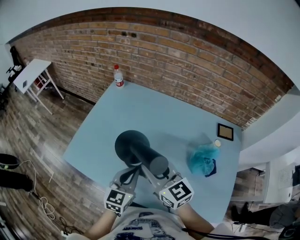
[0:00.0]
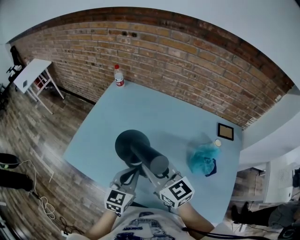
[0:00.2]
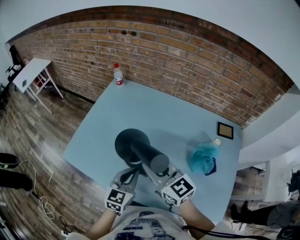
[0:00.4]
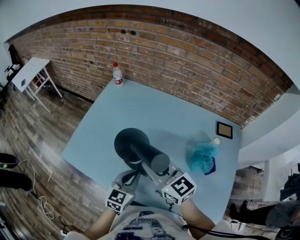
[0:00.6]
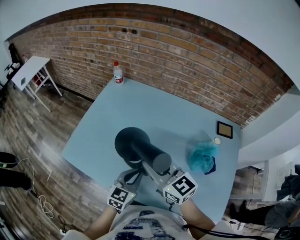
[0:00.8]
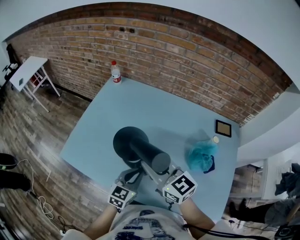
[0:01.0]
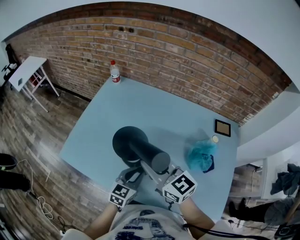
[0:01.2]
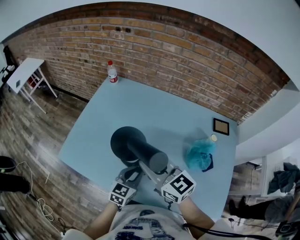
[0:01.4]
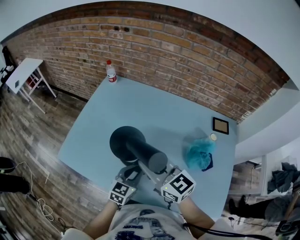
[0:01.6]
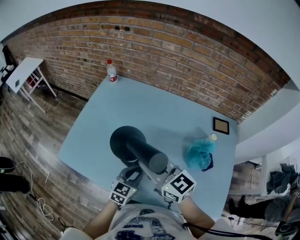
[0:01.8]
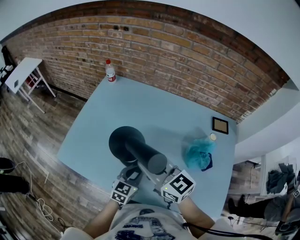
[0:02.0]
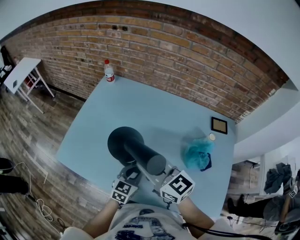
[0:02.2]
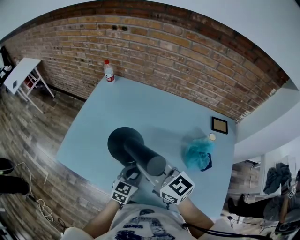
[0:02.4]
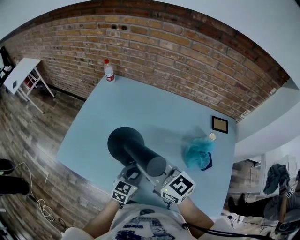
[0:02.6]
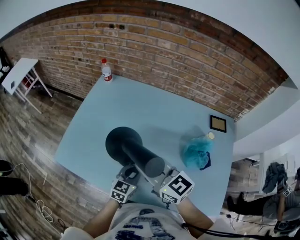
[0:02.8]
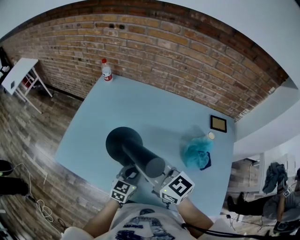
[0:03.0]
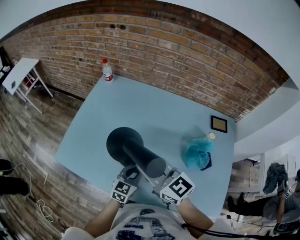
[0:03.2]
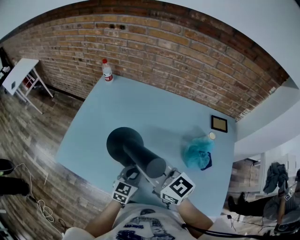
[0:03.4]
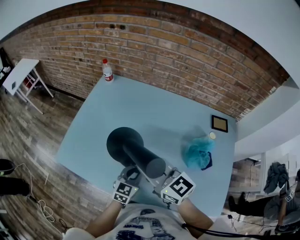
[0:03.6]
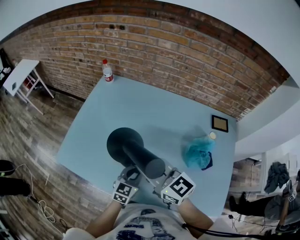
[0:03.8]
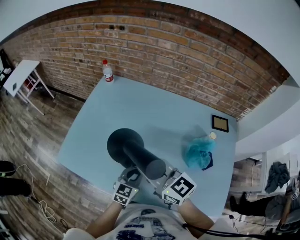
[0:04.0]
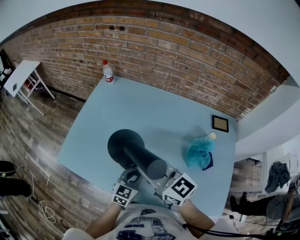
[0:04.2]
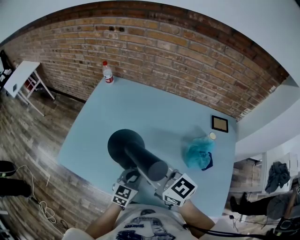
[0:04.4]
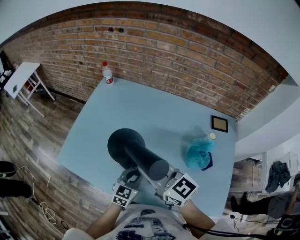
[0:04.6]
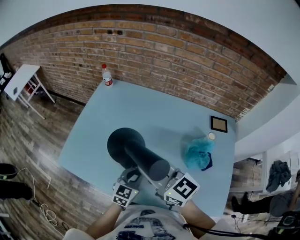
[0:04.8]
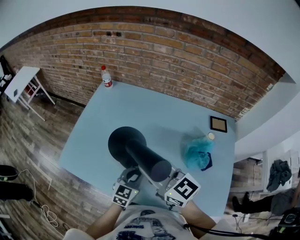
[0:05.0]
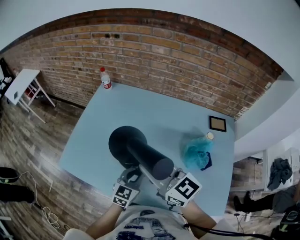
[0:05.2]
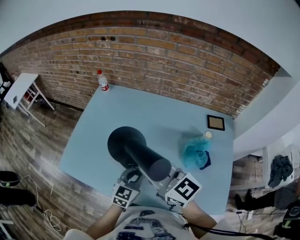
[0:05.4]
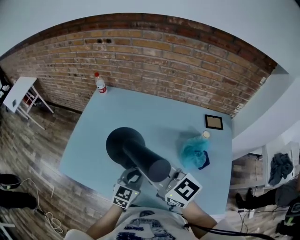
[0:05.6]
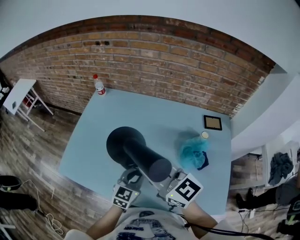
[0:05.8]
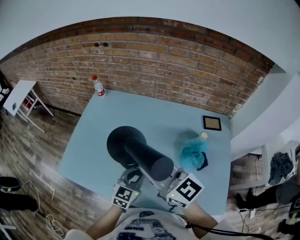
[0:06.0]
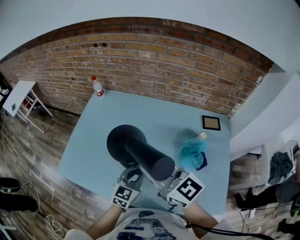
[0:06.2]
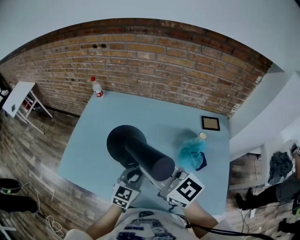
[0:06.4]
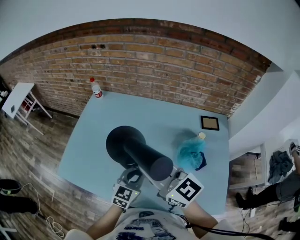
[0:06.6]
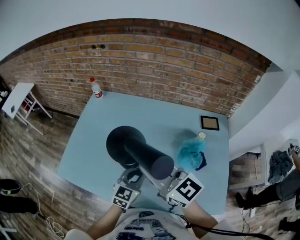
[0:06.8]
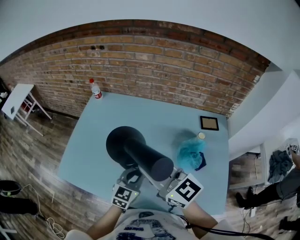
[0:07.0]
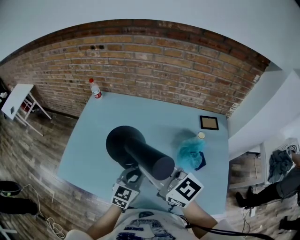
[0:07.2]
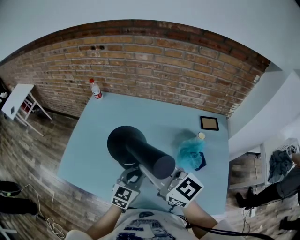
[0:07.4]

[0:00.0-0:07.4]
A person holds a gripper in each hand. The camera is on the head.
0:00.0 to 0:01.4: The left gripper heads downward, covering approximately 10 cm.
0:01.4 to 0:04.4: The grippers stay close to where they were, moving slightly.
0:04.4 to 0:06.0: The two grippers go approximately 10 cm upward and to the right.
0:06.0 to 0:07.4: Both grippers stay put.

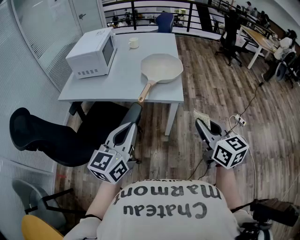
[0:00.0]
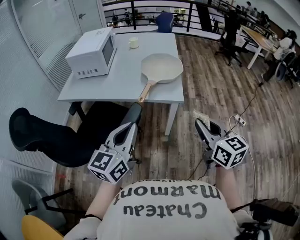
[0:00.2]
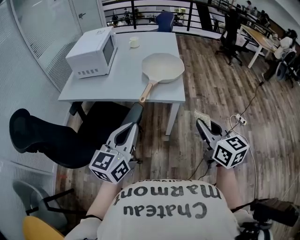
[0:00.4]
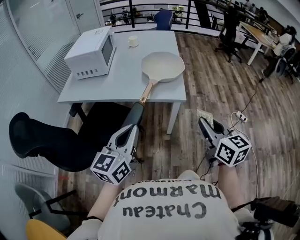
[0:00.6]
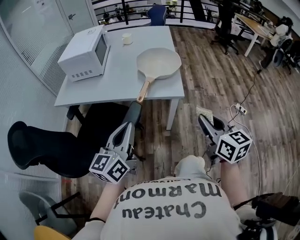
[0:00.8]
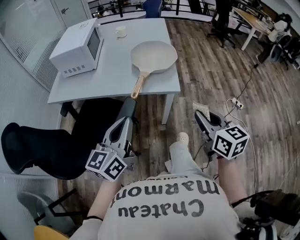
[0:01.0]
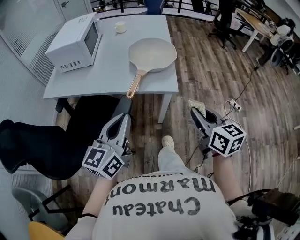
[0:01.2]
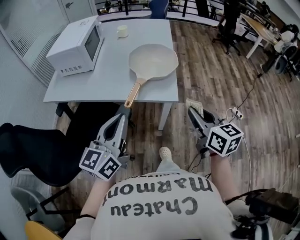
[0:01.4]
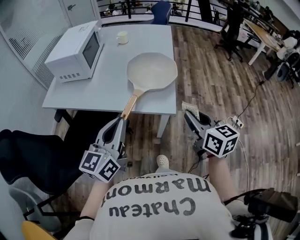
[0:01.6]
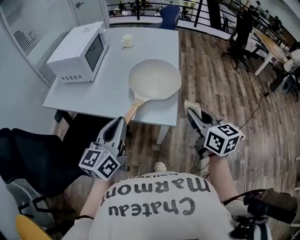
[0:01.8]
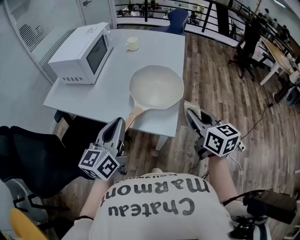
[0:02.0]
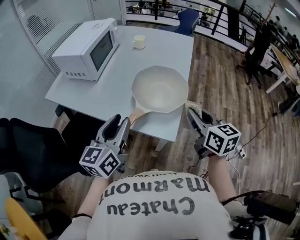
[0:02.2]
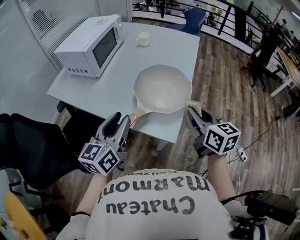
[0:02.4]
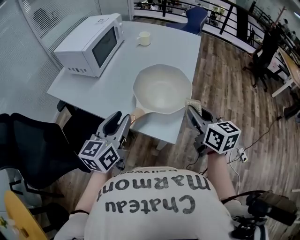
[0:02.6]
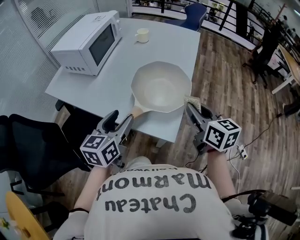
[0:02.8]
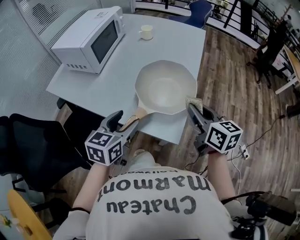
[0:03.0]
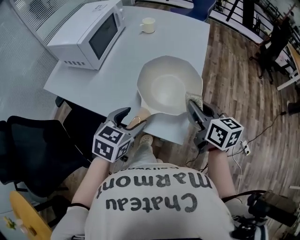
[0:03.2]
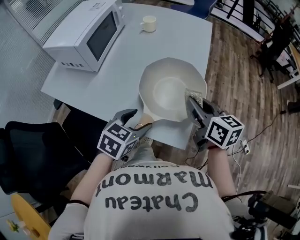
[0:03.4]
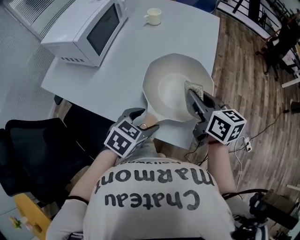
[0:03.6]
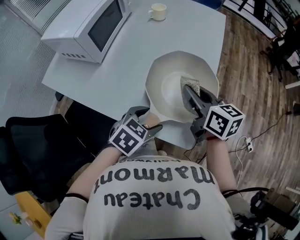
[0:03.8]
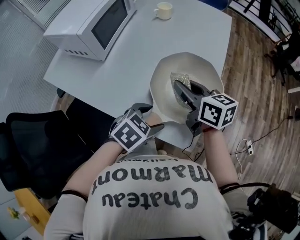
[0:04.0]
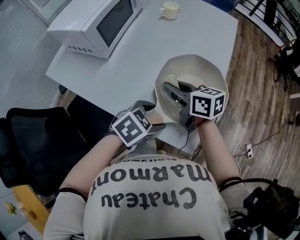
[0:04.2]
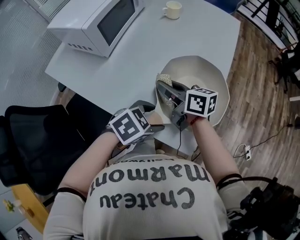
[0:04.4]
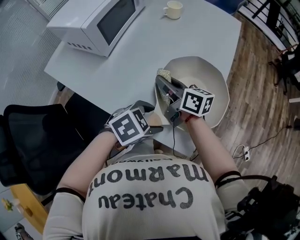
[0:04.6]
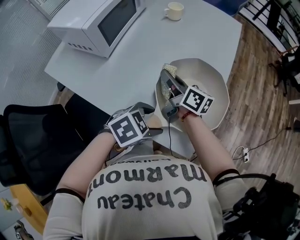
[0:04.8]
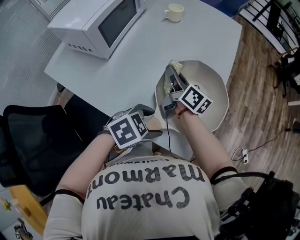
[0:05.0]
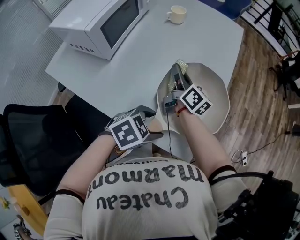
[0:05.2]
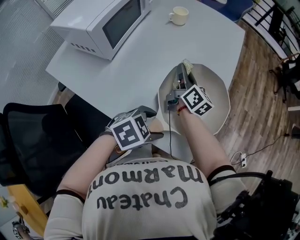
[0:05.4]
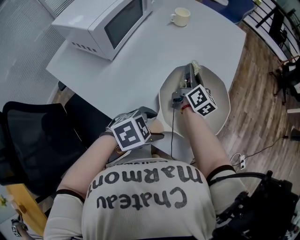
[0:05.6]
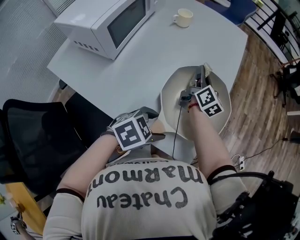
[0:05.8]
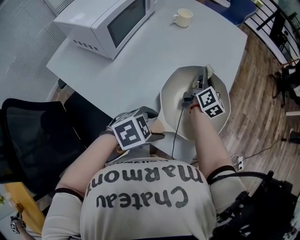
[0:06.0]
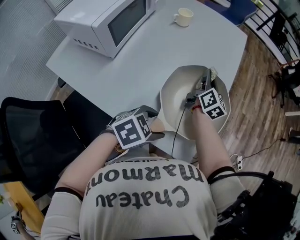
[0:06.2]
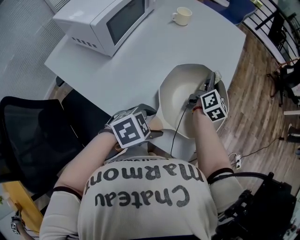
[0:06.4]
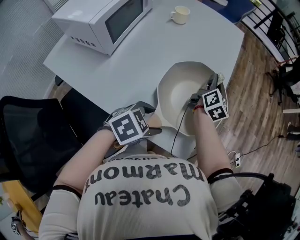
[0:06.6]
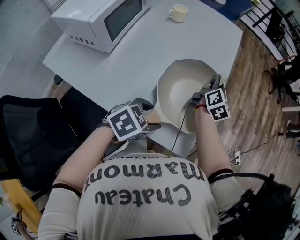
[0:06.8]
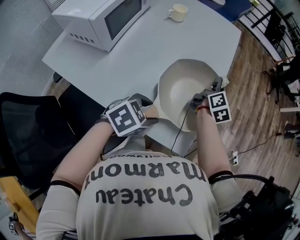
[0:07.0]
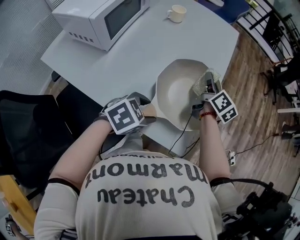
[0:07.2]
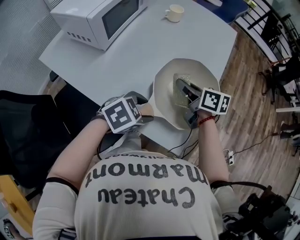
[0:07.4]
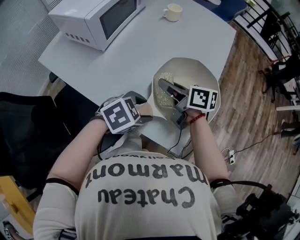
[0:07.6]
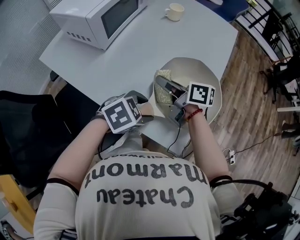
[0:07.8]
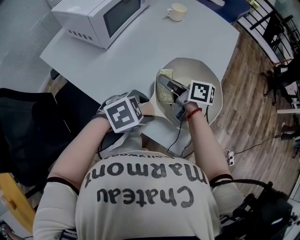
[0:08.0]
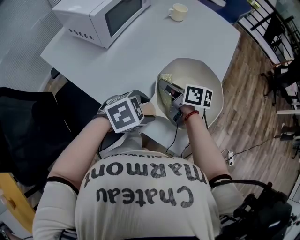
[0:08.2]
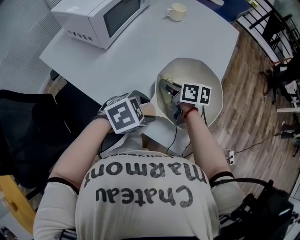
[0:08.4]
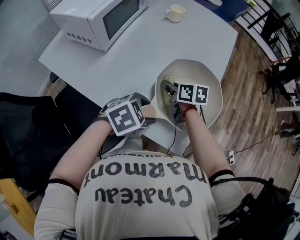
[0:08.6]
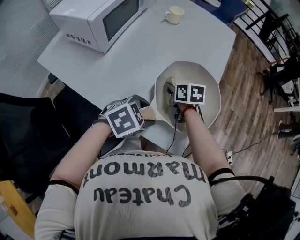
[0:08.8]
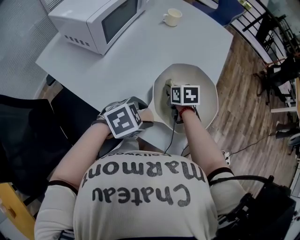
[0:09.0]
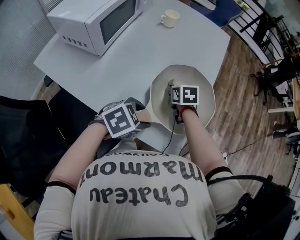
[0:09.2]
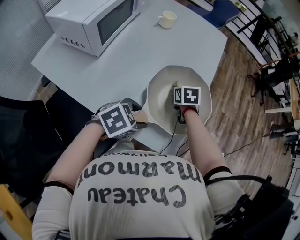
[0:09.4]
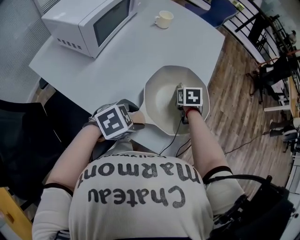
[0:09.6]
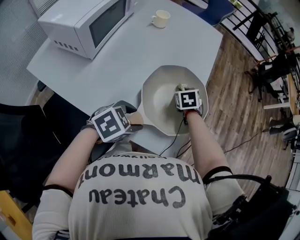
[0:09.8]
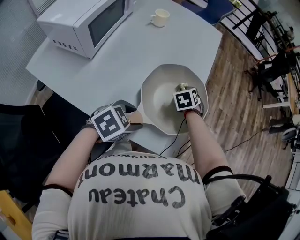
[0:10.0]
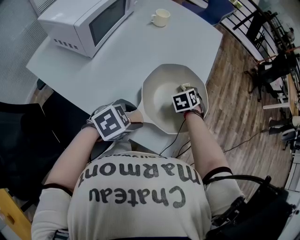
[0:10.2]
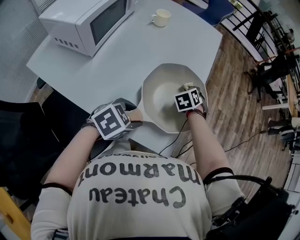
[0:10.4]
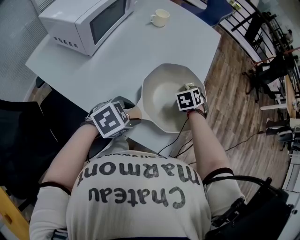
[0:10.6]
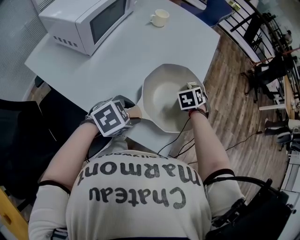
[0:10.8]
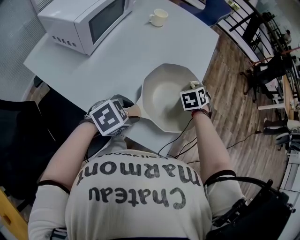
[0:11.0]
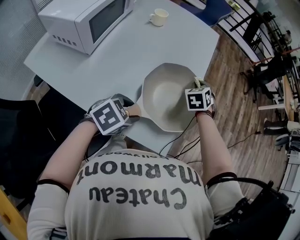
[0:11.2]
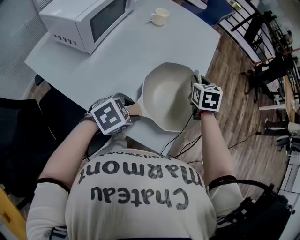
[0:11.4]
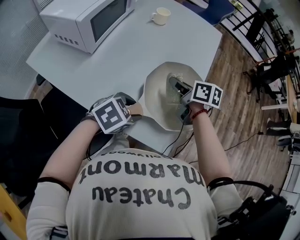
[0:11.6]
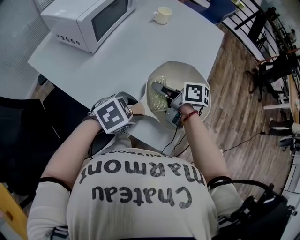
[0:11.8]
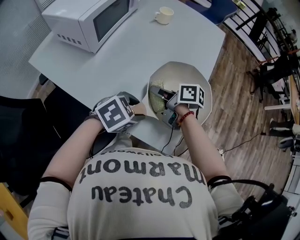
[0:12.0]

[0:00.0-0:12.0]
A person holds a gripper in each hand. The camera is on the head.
0:00.0 to 0:01.6: The two grippers go about 15 cm forward.
0:01.6 to 0:03.0: The right gripper travels forward by approximately 20 cm, while the left gripper heads forward and downward, covering roughly 20 cm, changes its angle by some 30 degrees, and opens up.
0:03.0 to 0:04.4: The left gripper travels downward by approximately 10 cm, and swivels about 50 degrees. The right gripper shifts by about 30 cm, and turns by roughly 30 degrees.
0:04.4 to 0:06.0: The right gripper moves approximately 20 cm, and changes its angle by some 50 degrees.
0:06.0 to 0:07.6: The right gripper ends up roughly 20 cm from where it was, and rotates approximately 60 degrees.
0:07.6 to 0:09.0: The right gripper goes some 10 cm downward, and angles its fingers downward, by approximately 40 degrees.
0:09.0 to 0:10.4: The right gripper moves roughly 15 cm, and changes its angle by about 40 degrees.
0:10.4 to 0:12.0: The right gripper moves roughly 20 cm, and changes its angle by about 90 degrees.

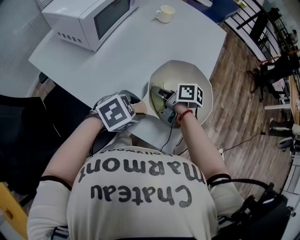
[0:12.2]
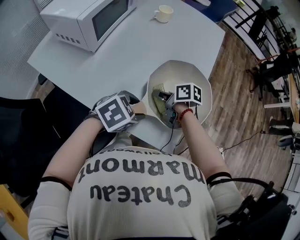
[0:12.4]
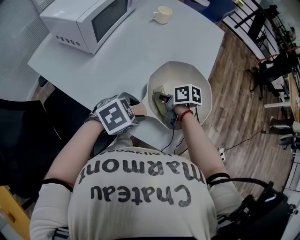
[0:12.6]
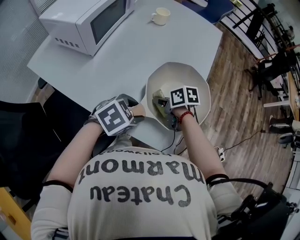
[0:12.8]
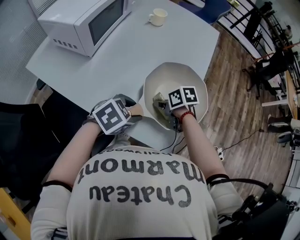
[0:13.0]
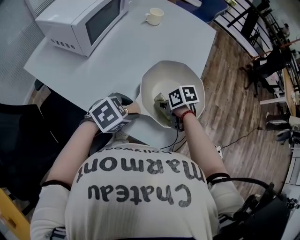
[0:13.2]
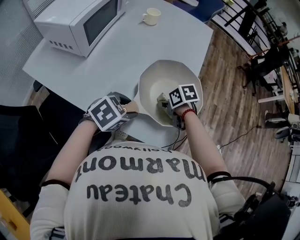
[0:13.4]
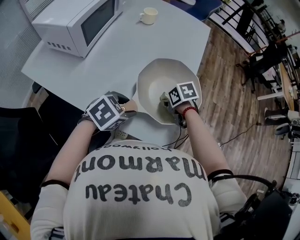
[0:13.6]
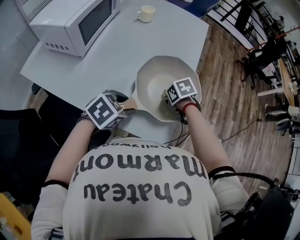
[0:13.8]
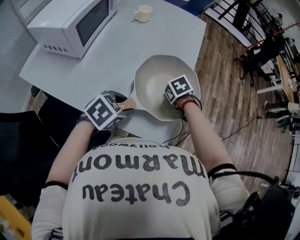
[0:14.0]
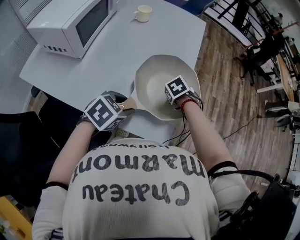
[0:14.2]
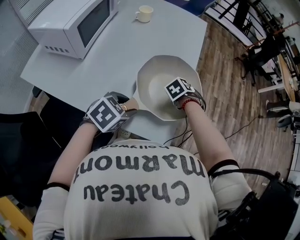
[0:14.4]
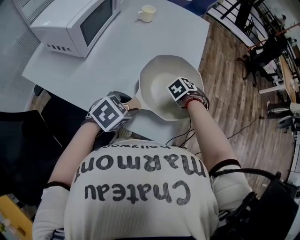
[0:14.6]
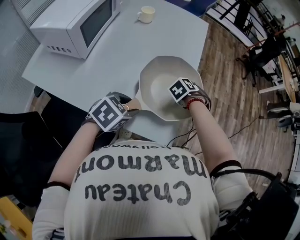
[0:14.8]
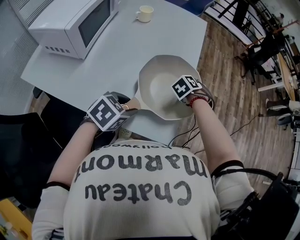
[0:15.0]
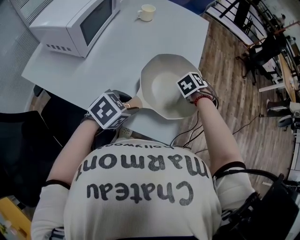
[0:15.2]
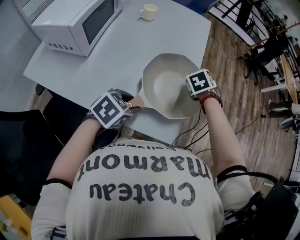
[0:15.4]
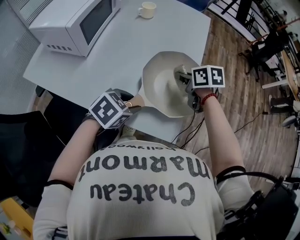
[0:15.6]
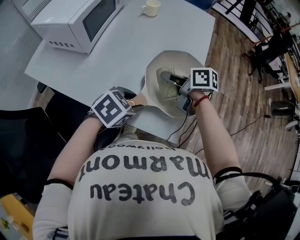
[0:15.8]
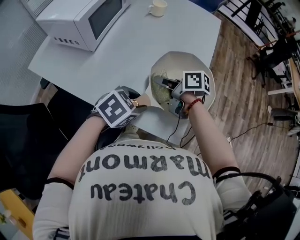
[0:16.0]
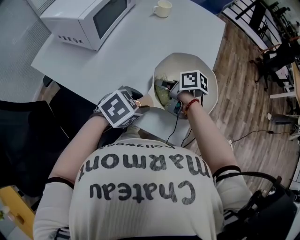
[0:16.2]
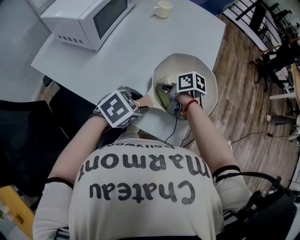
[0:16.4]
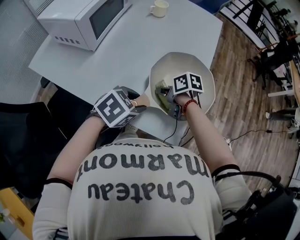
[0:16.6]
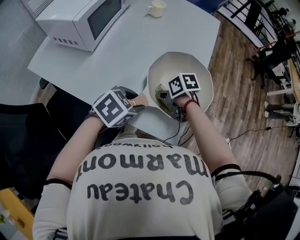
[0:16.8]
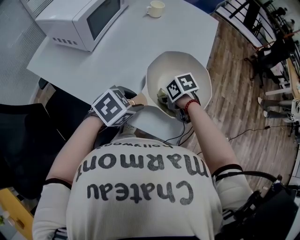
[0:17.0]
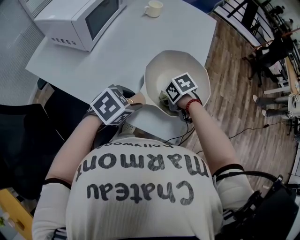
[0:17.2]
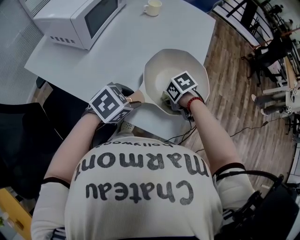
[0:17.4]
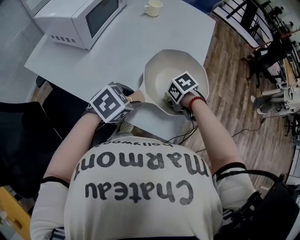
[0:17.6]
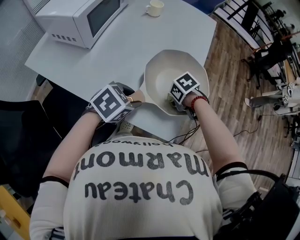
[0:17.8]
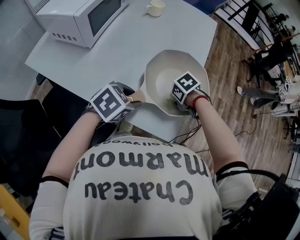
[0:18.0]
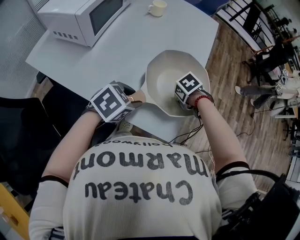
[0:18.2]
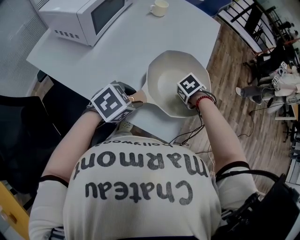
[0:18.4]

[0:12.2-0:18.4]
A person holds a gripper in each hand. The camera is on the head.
0:12.2 to 0:13.8: The right gripper shifts by roughly 15 cm, and tilts its fingers some 50 degrees downward.
0:13.8 to 0:15.4: The right gripper ends up some 15 cm from where it was, and swivels approximately 30 degrees.
0:15.4 to 0:16.8: The right gripper changes place by about 20 cm, and swivels approximately 50 degrees.
0:16.8 to 0:18.4: The right gripper shifts by some 15 cm, and turns by roughly 50 degrees.
